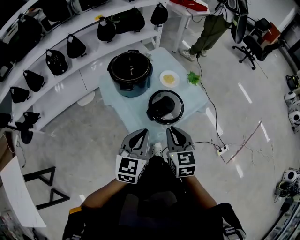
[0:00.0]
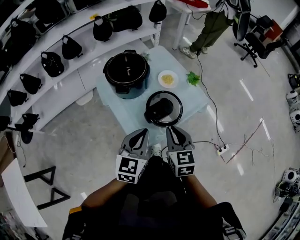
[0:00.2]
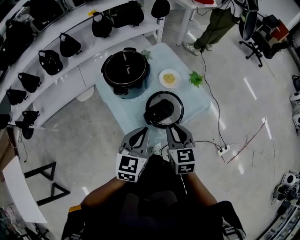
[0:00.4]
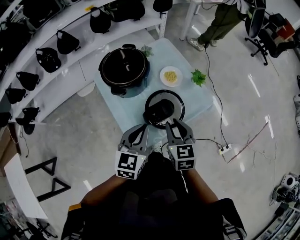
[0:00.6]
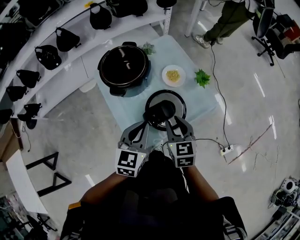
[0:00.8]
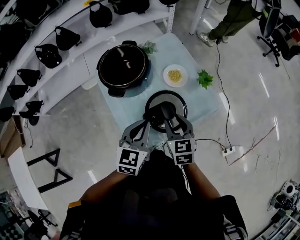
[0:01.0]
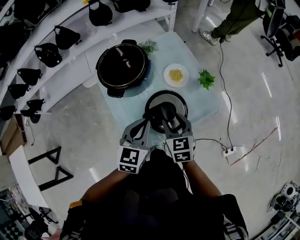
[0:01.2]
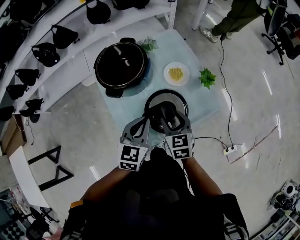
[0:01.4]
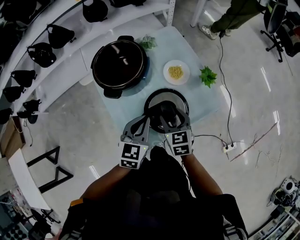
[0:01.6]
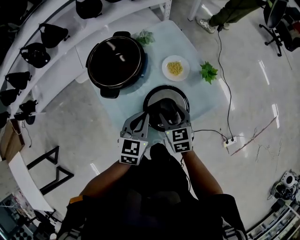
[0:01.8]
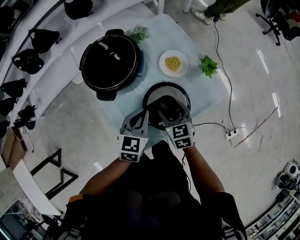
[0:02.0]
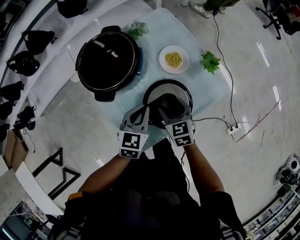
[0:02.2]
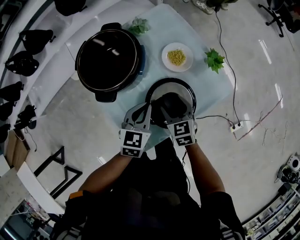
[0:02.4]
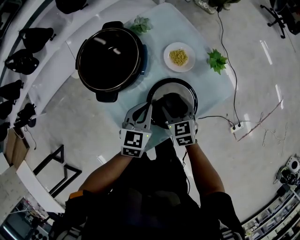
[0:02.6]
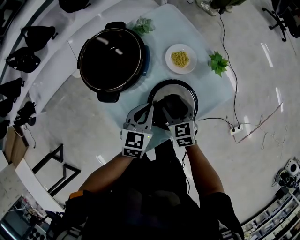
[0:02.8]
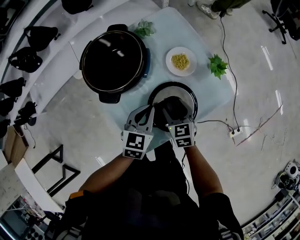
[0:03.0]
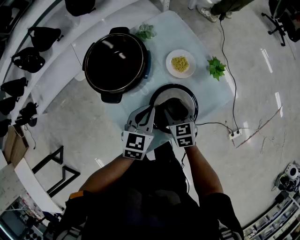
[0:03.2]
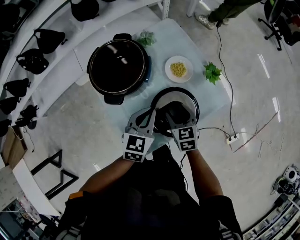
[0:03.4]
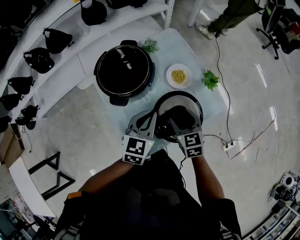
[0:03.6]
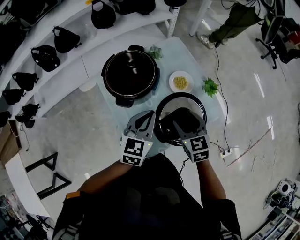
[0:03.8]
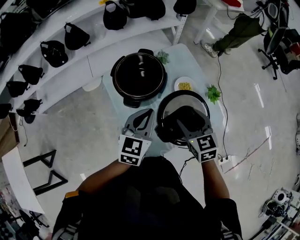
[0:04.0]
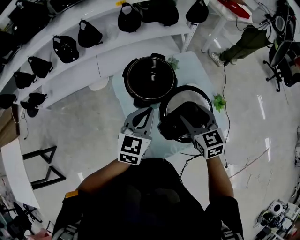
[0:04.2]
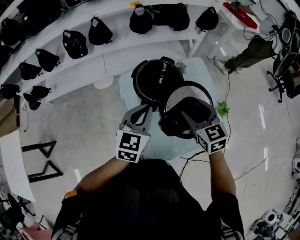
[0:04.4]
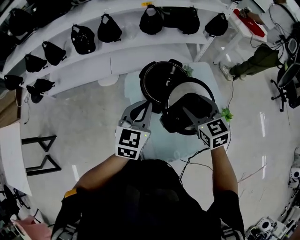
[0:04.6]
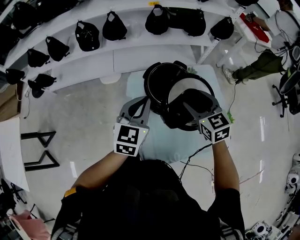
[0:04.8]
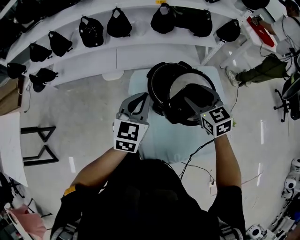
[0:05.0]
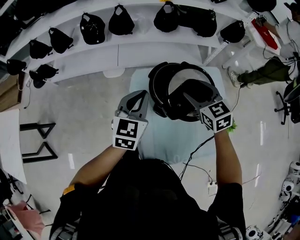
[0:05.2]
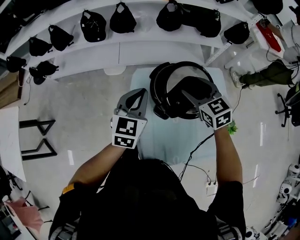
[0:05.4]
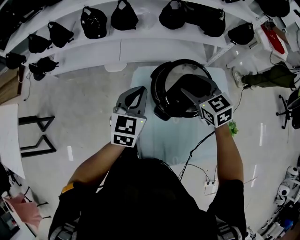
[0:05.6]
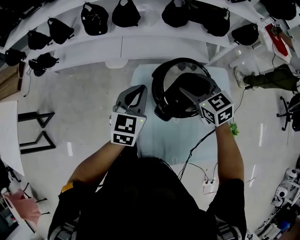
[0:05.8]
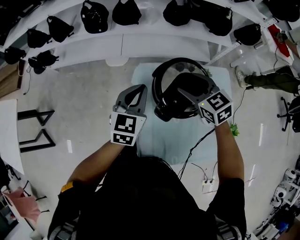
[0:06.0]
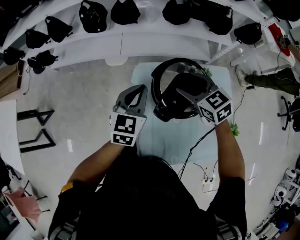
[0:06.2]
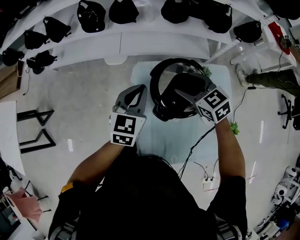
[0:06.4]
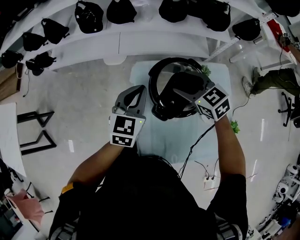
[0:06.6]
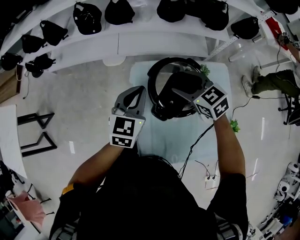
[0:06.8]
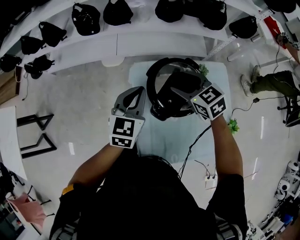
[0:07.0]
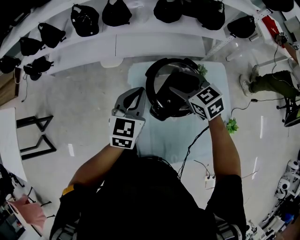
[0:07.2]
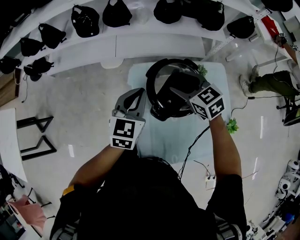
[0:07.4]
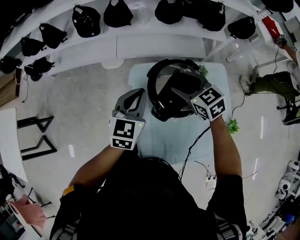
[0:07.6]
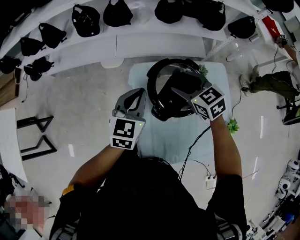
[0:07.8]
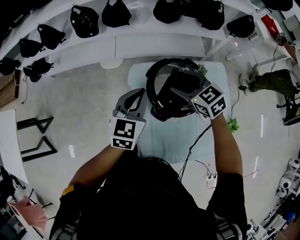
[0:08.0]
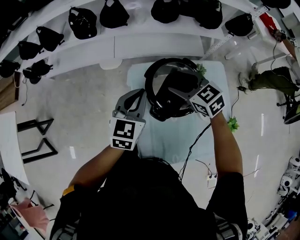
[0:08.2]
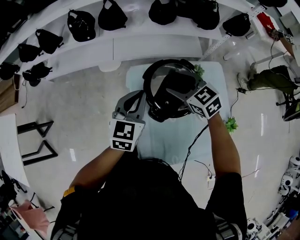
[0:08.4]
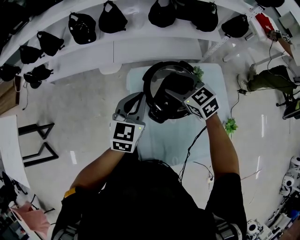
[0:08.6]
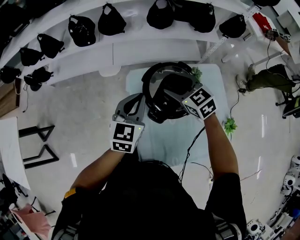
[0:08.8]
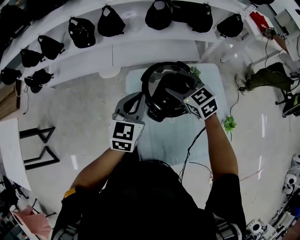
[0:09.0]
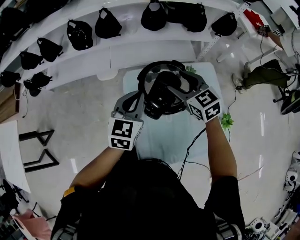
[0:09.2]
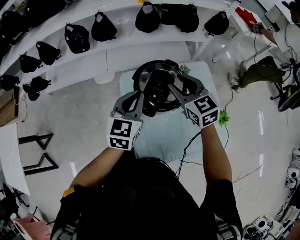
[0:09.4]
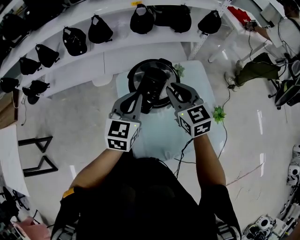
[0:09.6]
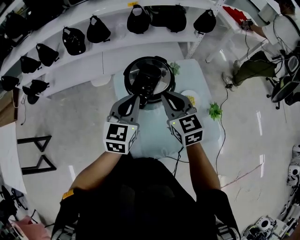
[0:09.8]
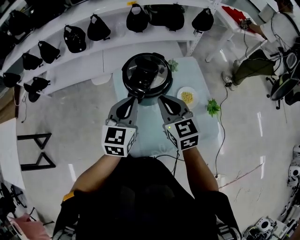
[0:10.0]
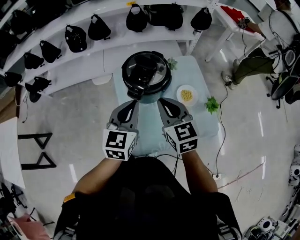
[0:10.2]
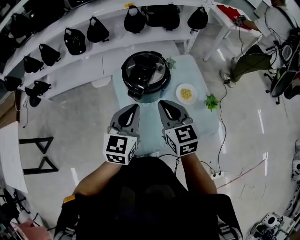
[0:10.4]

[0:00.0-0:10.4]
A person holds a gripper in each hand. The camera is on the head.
0:00.0 to 0:01.4: Both grippers move forward and downward, approximately 20 cm. The right gripper opens its fingers.
0:01.4 to 0:03.0: The right gripper goes approximately 10 cm downward. Meanwhile the left gripper travels downward and forward by about 10 cm.
0:03.0 to 0:04.4: The left gripper is displaced upward and to the left by some 25 cm, and rotates about 20 degrees, while the right gripper heads upward, covering roughly 25 cm, and changes its angle by approximately 30 degrees.
0:04.4 to 0:06.0: Both grippers move forward and to the left, about 20 cm. The right gripper turns by about 30 degrees.
0:06.0 to 0:09.0: There are only small adjustments of the grippers.
0:09.0 to 0:10.4: Both grippers move backward, approximately 20 cm. The right gripper swivels about 30 degrees, and closes its fingers.

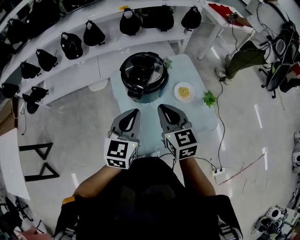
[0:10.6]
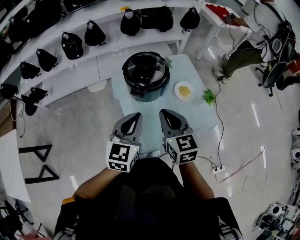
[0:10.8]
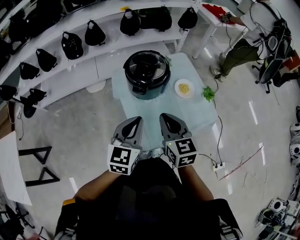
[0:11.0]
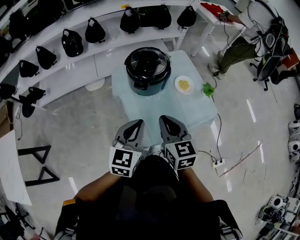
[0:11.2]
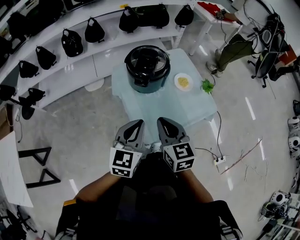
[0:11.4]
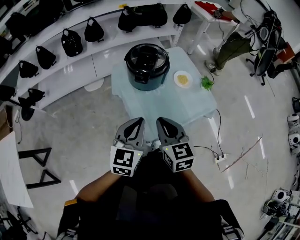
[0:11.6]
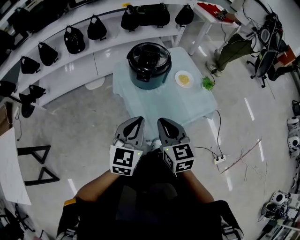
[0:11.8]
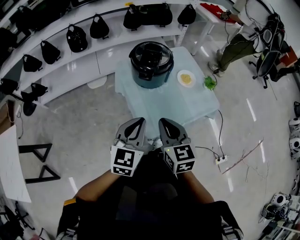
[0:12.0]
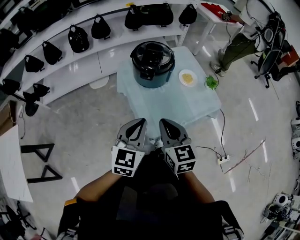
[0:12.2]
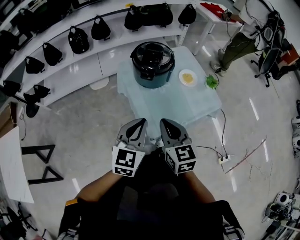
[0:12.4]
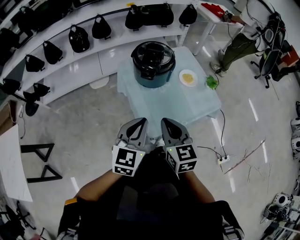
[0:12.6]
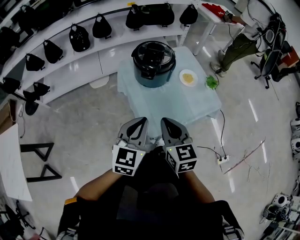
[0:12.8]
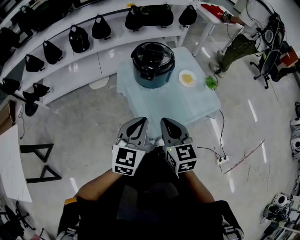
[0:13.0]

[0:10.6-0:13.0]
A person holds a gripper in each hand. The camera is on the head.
0:10.6 to 0:11.8: The grippers both shift backward by some 15 cm.
0:11.8 to 0:13.0: The grippers make only small movements.

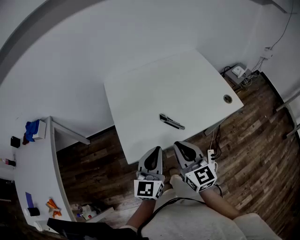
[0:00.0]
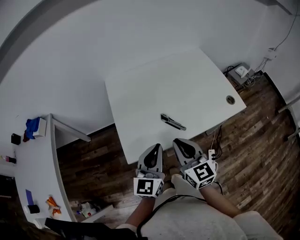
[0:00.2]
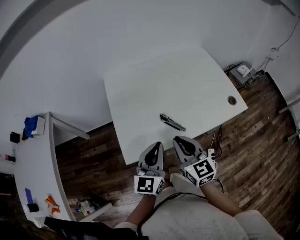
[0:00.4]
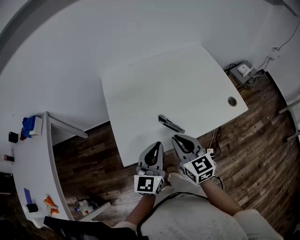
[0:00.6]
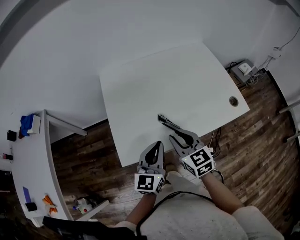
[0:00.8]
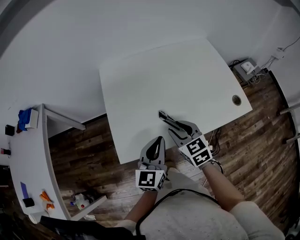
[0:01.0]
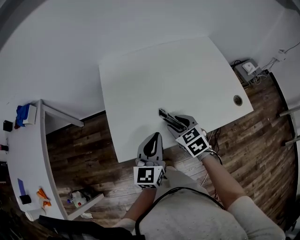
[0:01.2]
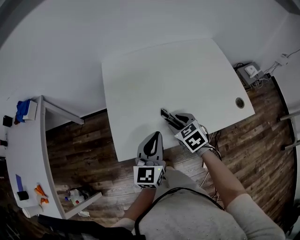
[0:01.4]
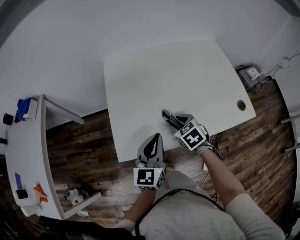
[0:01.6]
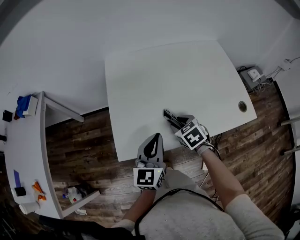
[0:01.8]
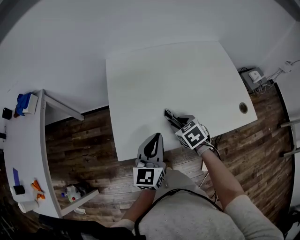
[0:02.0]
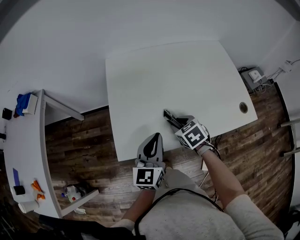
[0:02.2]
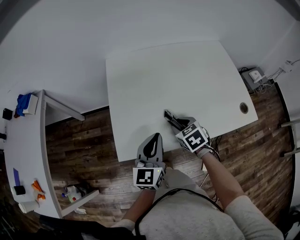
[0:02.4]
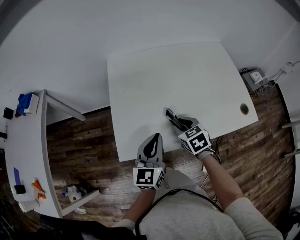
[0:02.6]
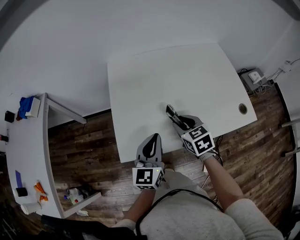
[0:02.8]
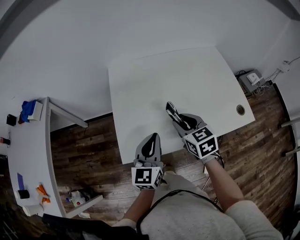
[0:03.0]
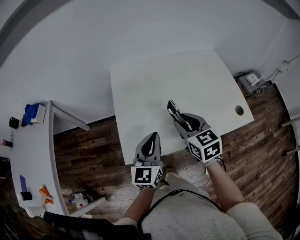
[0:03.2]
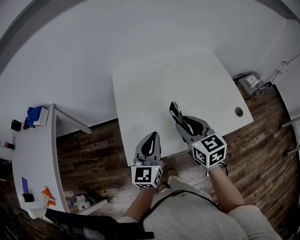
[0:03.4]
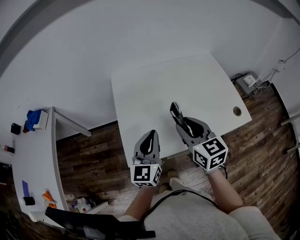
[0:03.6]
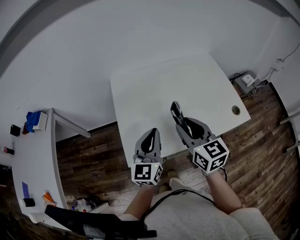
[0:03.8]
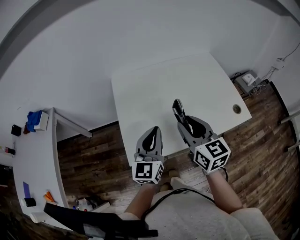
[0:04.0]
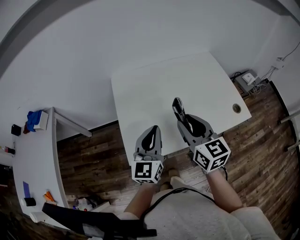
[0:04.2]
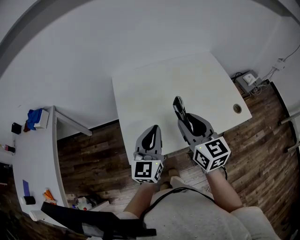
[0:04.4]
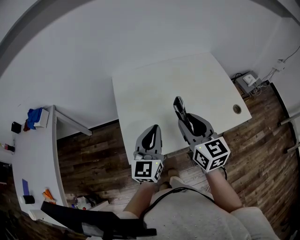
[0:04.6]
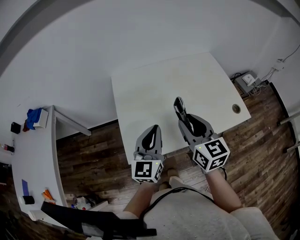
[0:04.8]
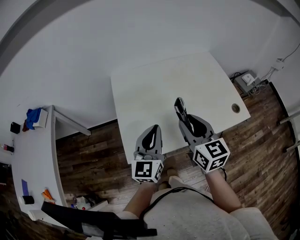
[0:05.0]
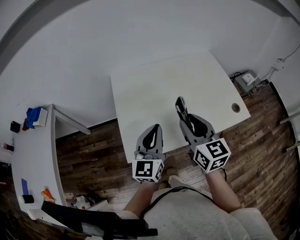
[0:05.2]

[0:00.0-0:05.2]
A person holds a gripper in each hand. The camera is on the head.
0:00.0 to 0:01.8: The right gripper is displaced downward and forward by some 25 cm, tips its fingers downward by roughly 50 degrees, and opens; the left gripper is displaced forward and downward by about 10 cm.
0:01.8 to 0:03.4: The left gripper shifts roughly 5 cm upward. Meanwhile the right gripper travels upward by roughly 20 cm, and angles its fingers upward, by approximately 30 degrees.
0:03.4 to 0:05.2: The grippers stay close to where they were, moving slightly.

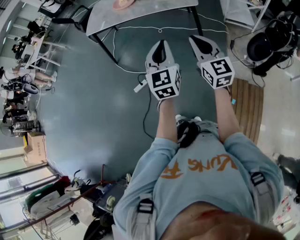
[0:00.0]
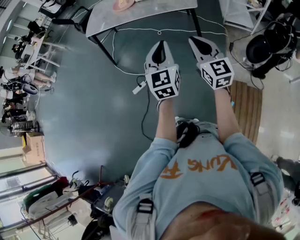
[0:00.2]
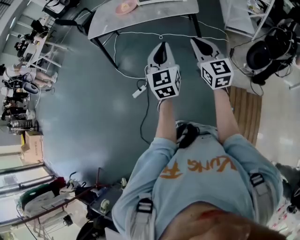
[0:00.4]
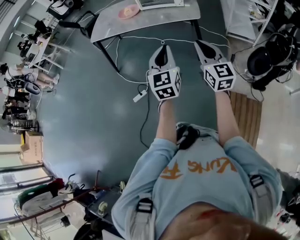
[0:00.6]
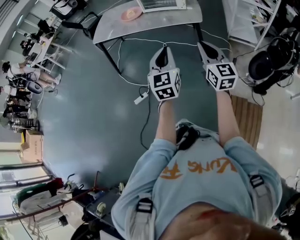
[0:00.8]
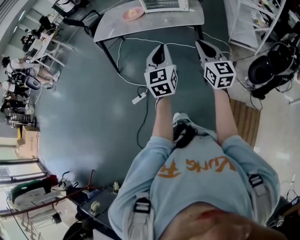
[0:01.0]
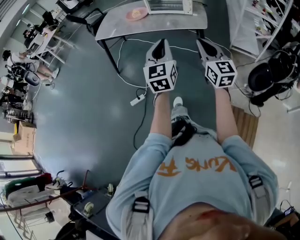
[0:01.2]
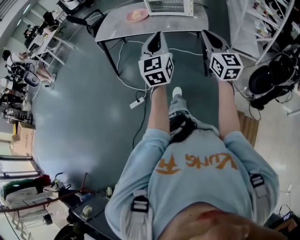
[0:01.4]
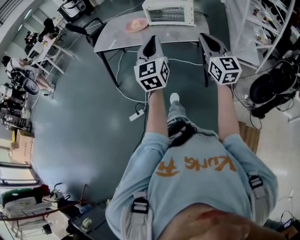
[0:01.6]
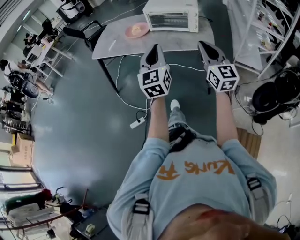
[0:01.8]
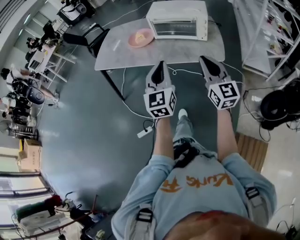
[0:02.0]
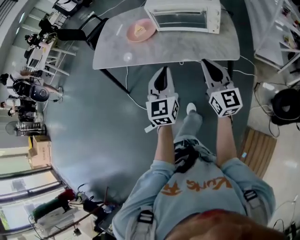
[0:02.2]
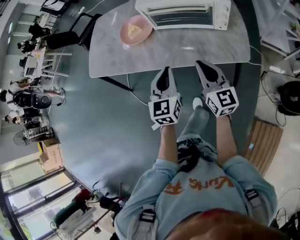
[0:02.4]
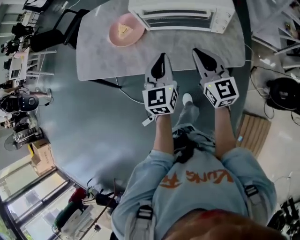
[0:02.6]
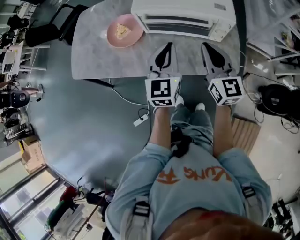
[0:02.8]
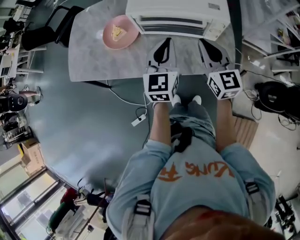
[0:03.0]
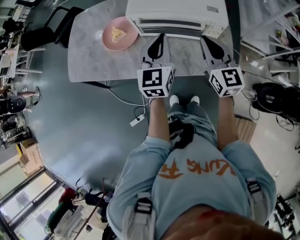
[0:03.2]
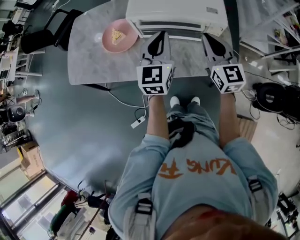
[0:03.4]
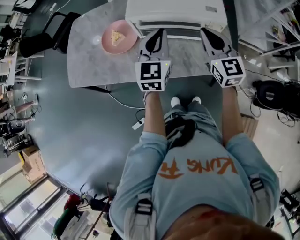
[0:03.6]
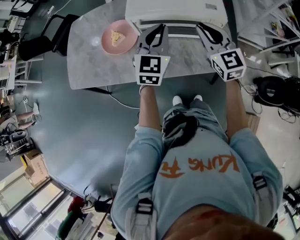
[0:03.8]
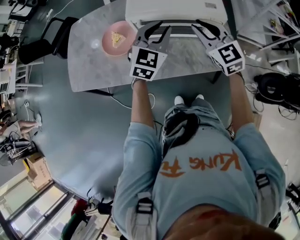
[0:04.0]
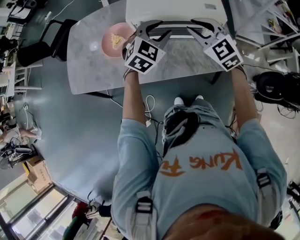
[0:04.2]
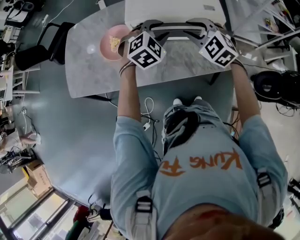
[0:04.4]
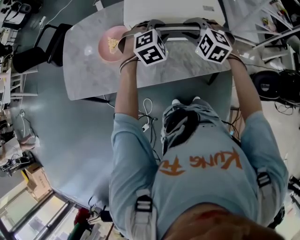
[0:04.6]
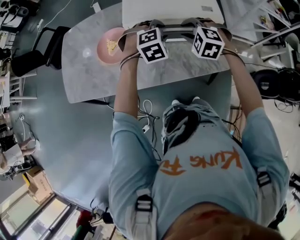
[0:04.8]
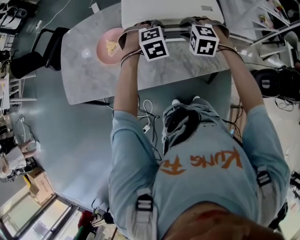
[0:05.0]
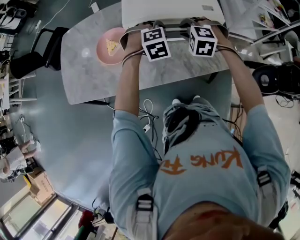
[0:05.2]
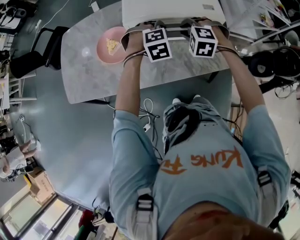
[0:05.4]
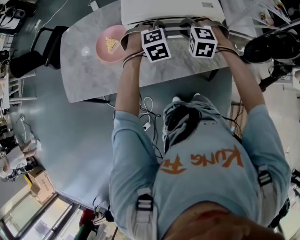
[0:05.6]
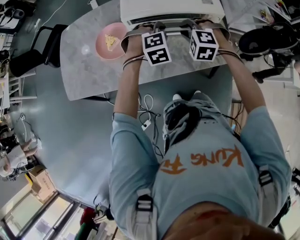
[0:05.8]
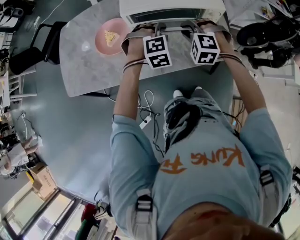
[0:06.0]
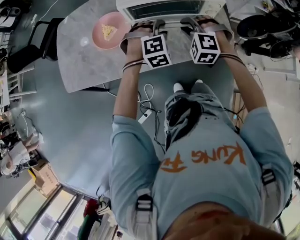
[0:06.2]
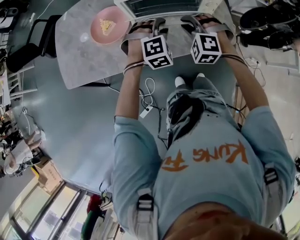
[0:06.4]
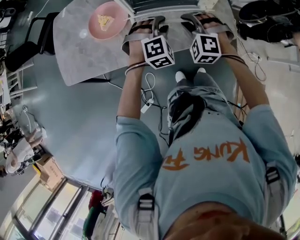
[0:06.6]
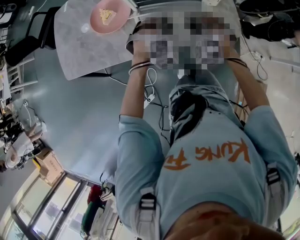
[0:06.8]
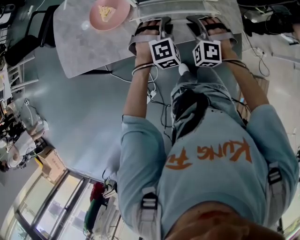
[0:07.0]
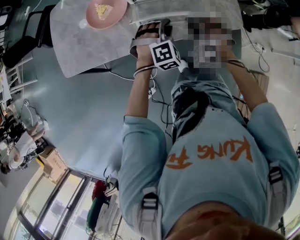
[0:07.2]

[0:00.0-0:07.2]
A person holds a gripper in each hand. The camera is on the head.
0:00.0 to 0:01.4: The right gripper heads forward and to the right, covering about 15 cm; the left gripper moves forward, some 10 cm.
0:01.4 to 0:02.8: The two grippers travel together, forward, roughly 60 cm.
0:02.8 to 0:04.4: The right gripper moves forward and to the left, about 10 cm, tips its fingers downward by roughly 30 degrees, and opens; the left gripper heads forward, covering approximately 10 cm, tilts its fingers roughly 30 degrees downward, and opens up.
0:04.4 to 0:05.8: Both grippers travel together downward, approximately 10 cm. The right gripper turns by approximately 30 degrees; the left gripper rotates some 20 degrees.
0:05.8 to 0:07.2: The grippers both shift backward and downward by about 15 cm.
